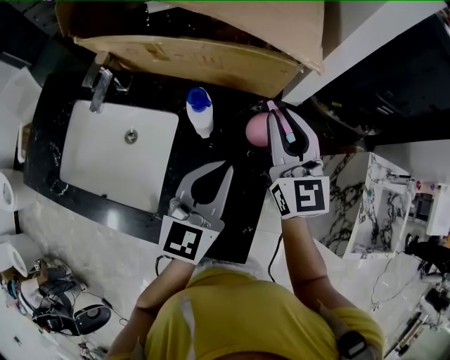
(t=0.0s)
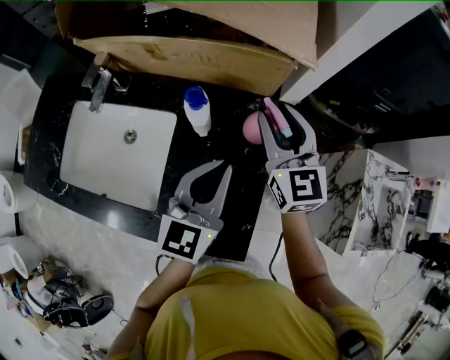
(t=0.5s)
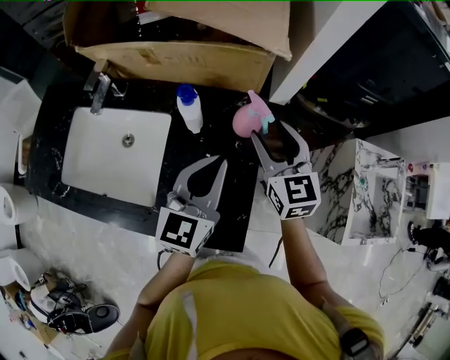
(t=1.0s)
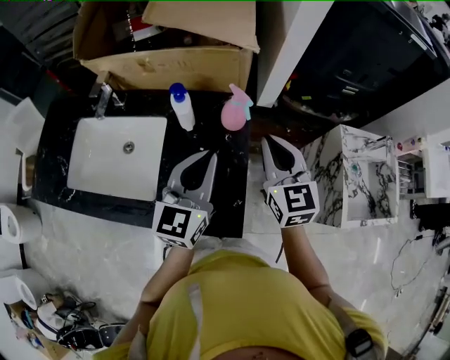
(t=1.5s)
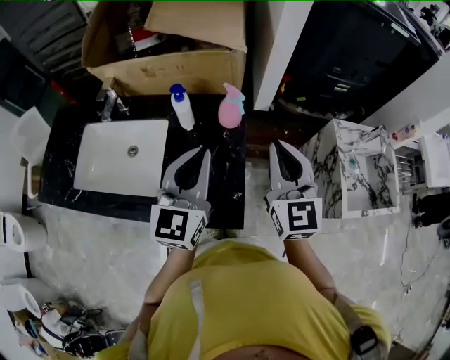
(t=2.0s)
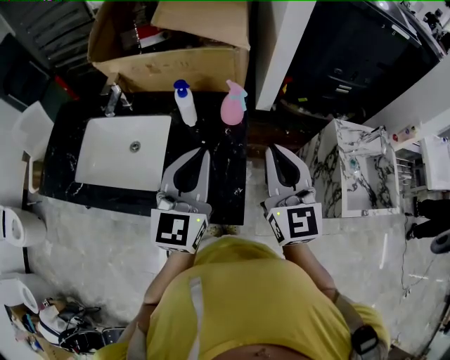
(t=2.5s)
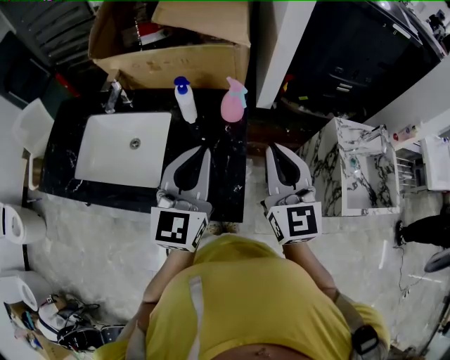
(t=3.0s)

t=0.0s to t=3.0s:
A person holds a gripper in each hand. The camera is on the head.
t=0.0s to t=1.5s: The right gripper heads backward and to the right, covering roughly 15 cm, and opens, then closes again. Meanwhile the left gripper goes some 10 cm backward and upward.
t=1.5s to t=3.0s: Both grippers move backward and upward, some 10 cm.

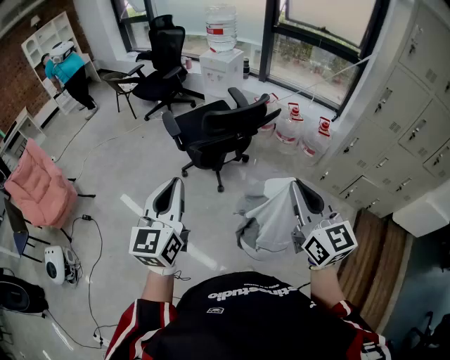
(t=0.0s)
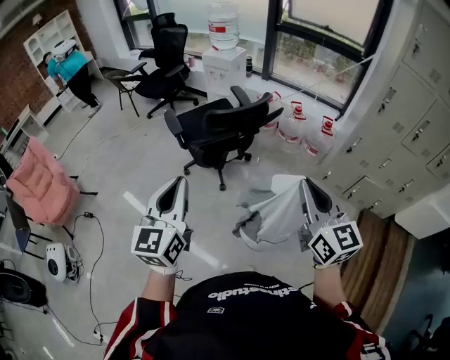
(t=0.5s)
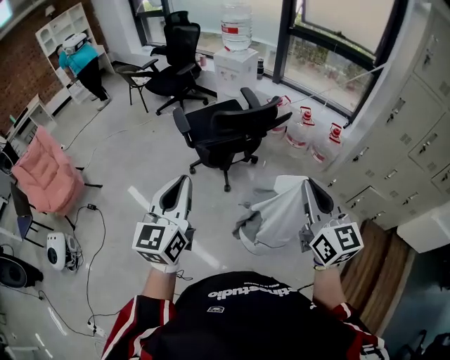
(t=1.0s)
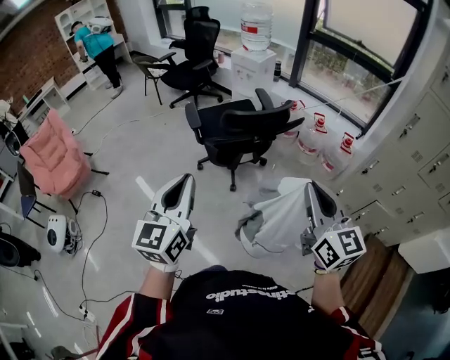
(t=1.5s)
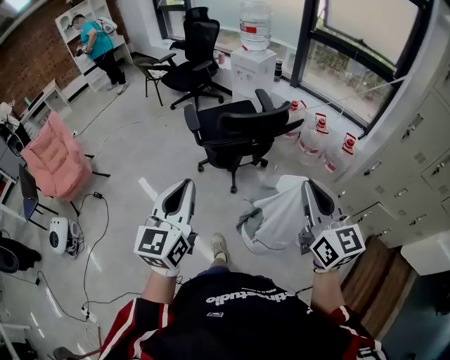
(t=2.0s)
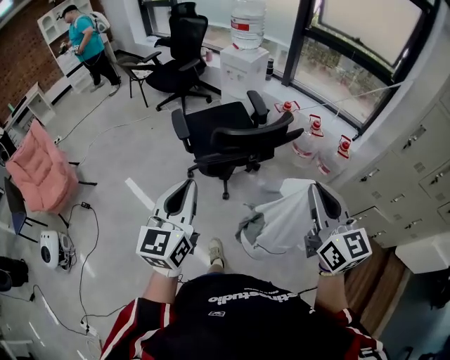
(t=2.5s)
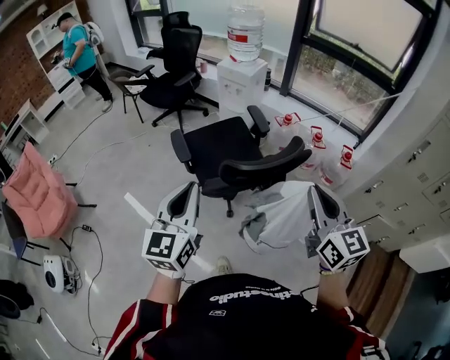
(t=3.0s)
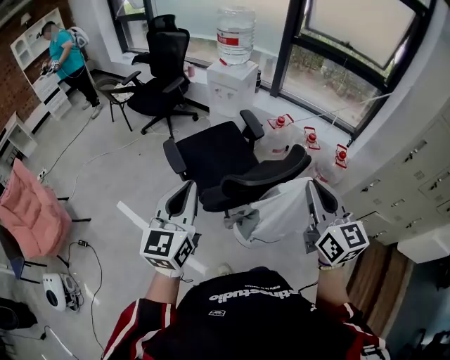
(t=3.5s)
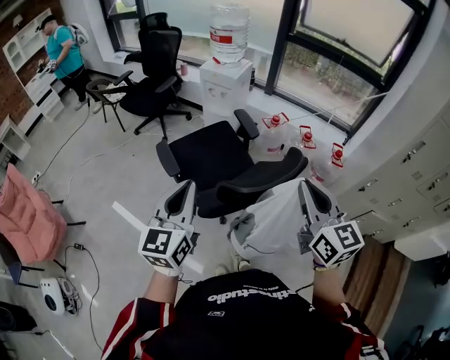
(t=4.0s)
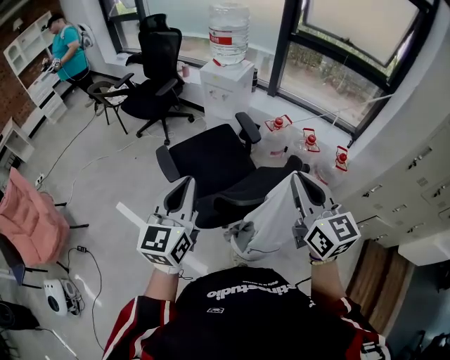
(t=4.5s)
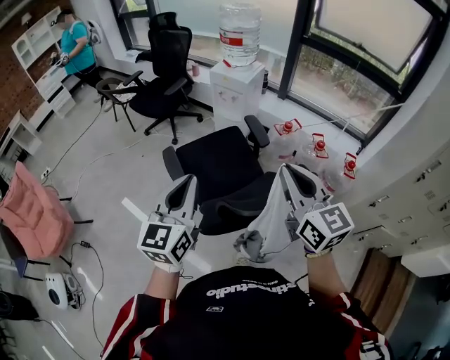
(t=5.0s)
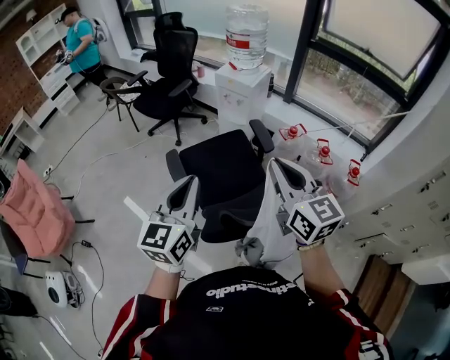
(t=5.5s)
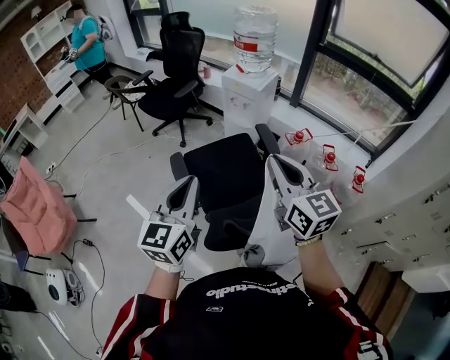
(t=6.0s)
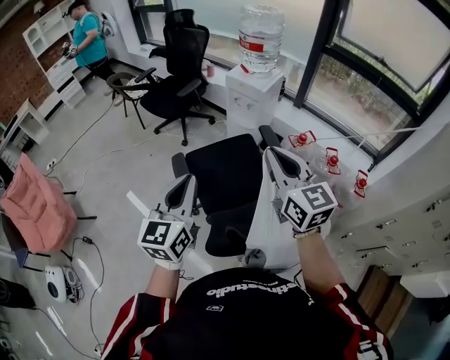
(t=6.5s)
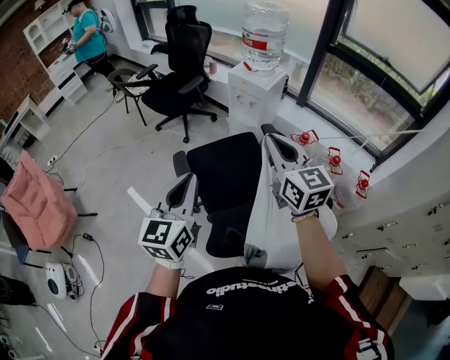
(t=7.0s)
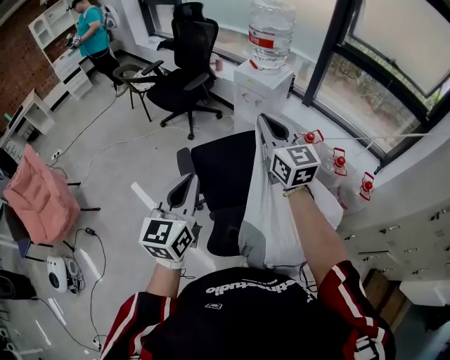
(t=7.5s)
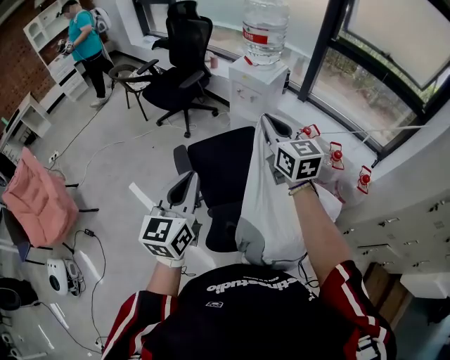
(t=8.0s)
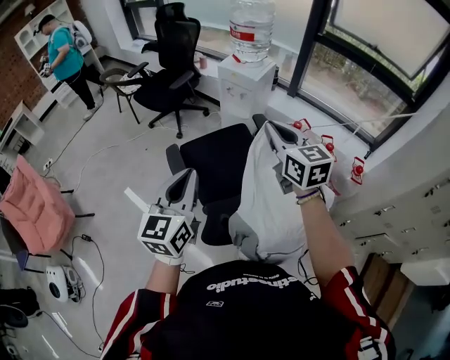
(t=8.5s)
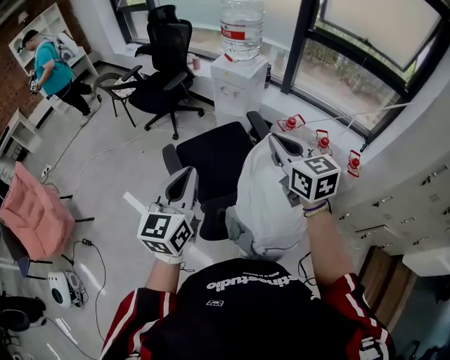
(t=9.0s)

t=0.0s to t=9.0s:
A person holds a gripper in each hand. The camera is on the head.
t=0.0s to t=2.0s: The right gripper is displaced forward and to the right by about 10 cm, while the left gripper is displaced to the right by about 5 cm.
t=2.0s to t=4.5s: The two grippers travel together, forward, approximately 40 cm.
t=4.5s to t=7.0s: The right gripper is displaced forward by about 25 cm. The left gripper shifts about 15 cm forward.
t=7.0s to t=9.0s: The right gripper goes some 10 cm backward and to the right; the left gripper shifts about 5 cm backward.

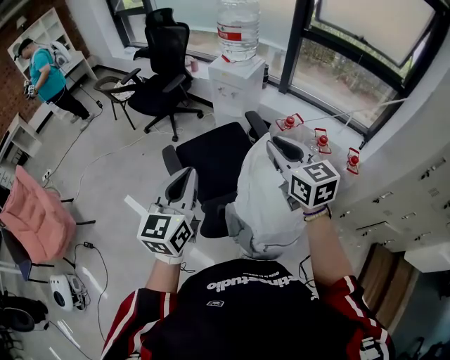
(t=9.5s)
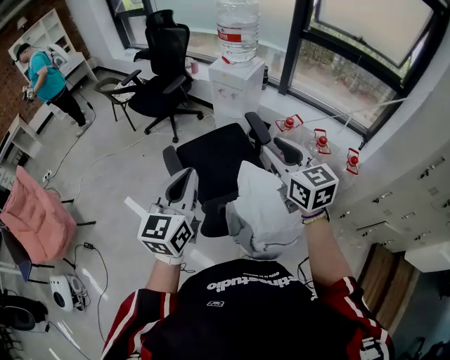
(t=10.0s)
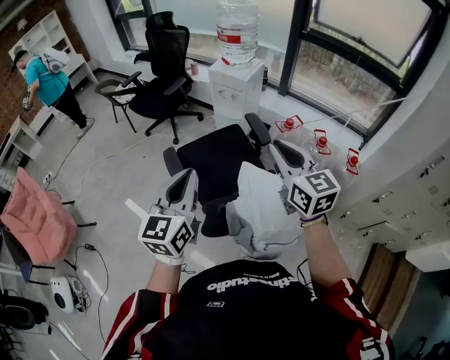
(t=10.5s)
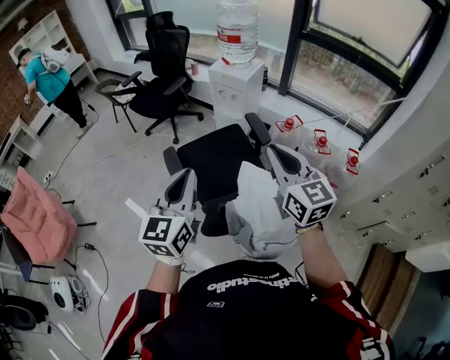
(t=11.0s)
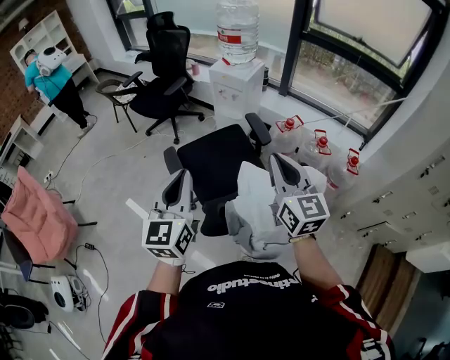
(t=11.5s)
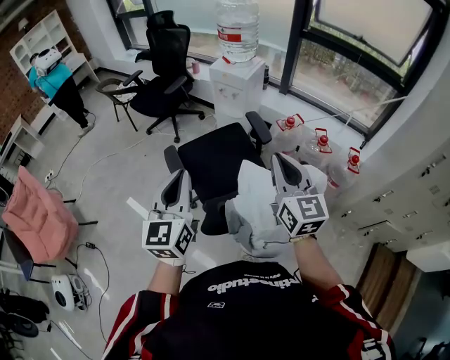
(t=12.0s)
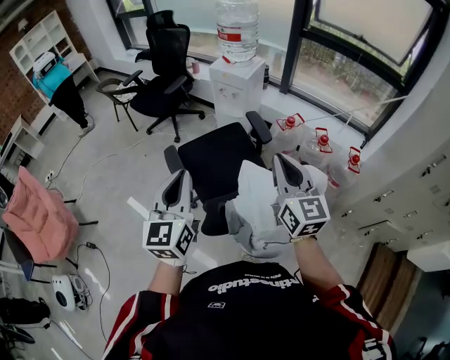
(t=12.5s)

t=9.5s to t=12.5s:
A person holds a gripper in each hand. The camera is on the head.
t=9.5s to t=12.5s: The grippers make only small movements.

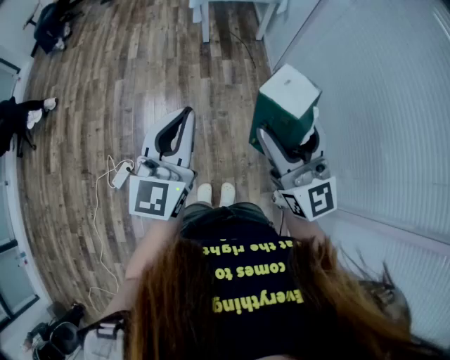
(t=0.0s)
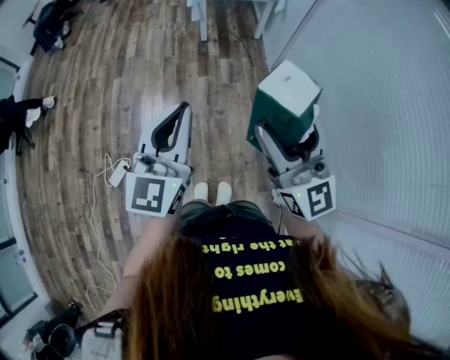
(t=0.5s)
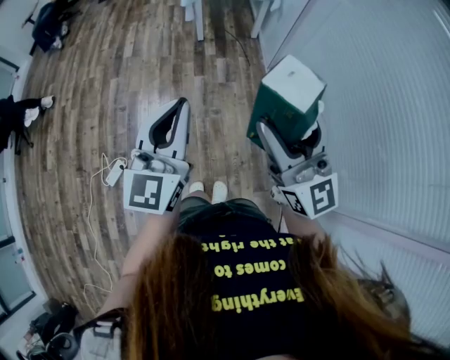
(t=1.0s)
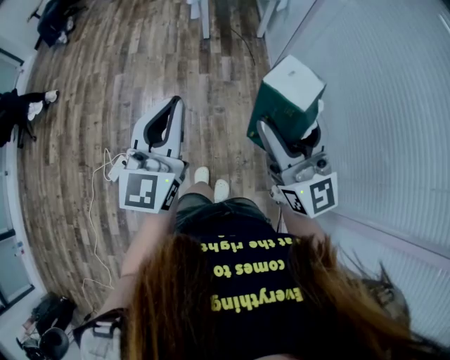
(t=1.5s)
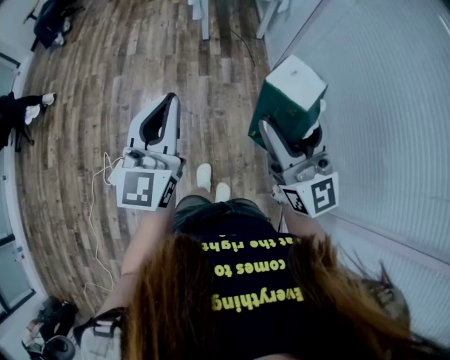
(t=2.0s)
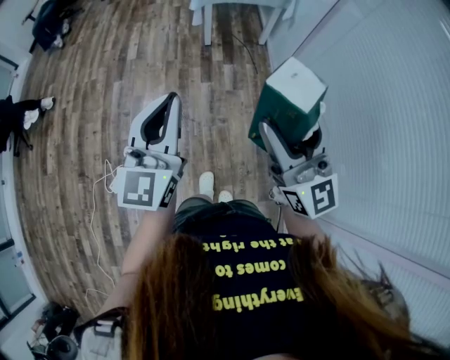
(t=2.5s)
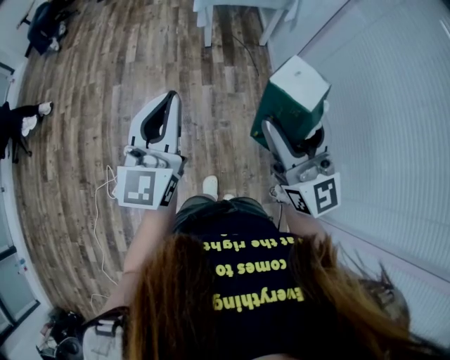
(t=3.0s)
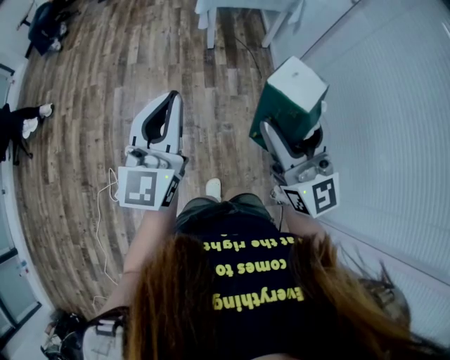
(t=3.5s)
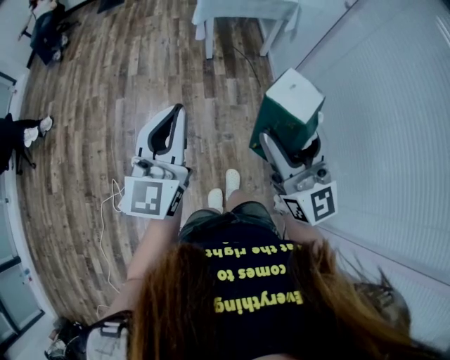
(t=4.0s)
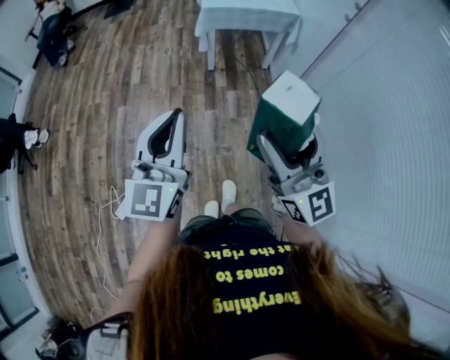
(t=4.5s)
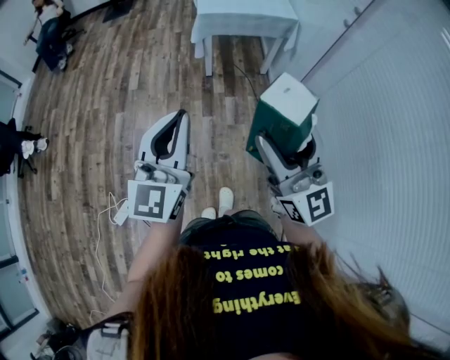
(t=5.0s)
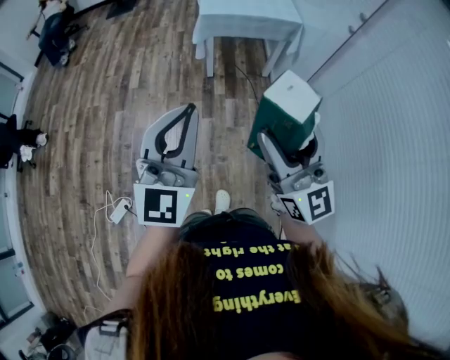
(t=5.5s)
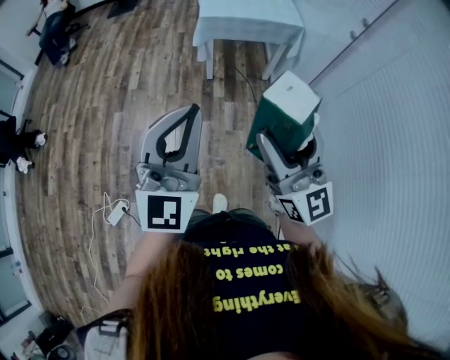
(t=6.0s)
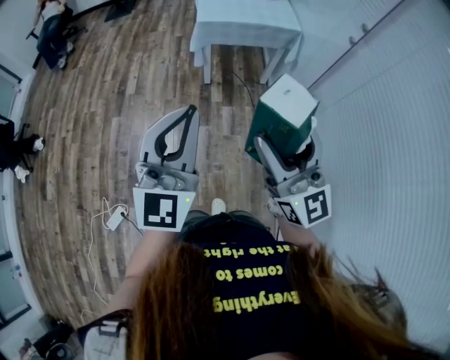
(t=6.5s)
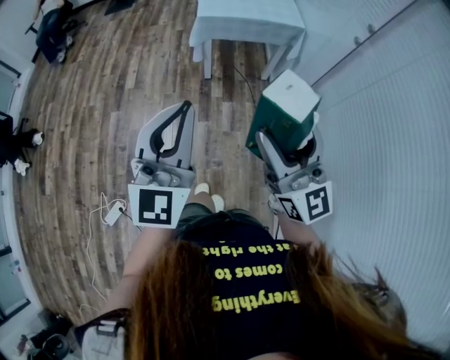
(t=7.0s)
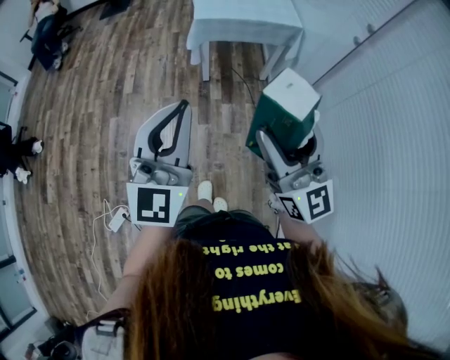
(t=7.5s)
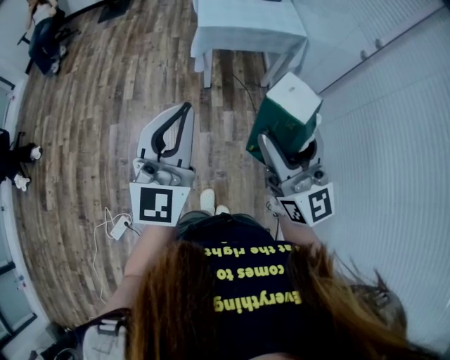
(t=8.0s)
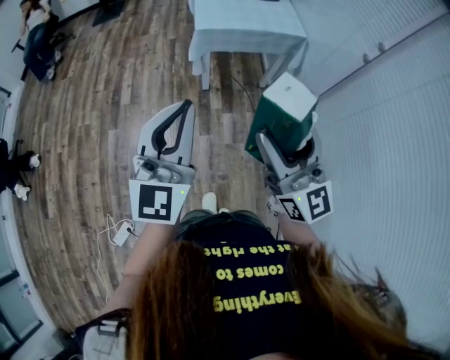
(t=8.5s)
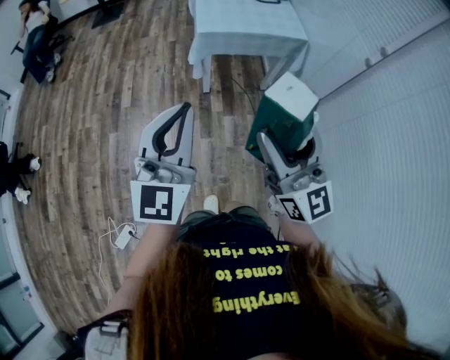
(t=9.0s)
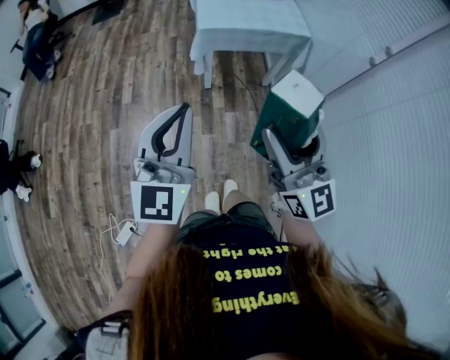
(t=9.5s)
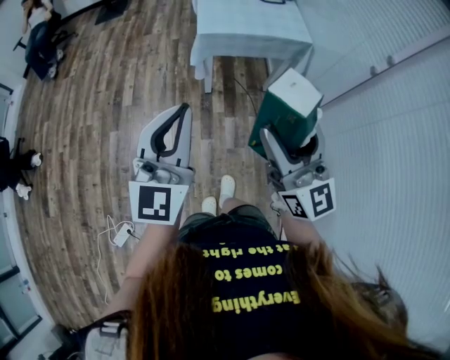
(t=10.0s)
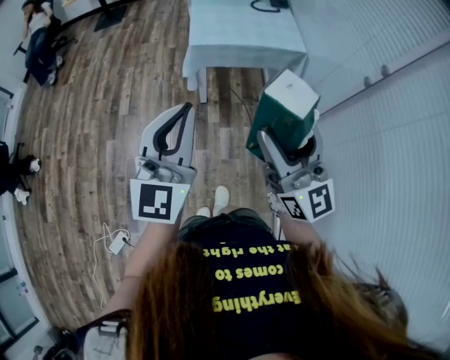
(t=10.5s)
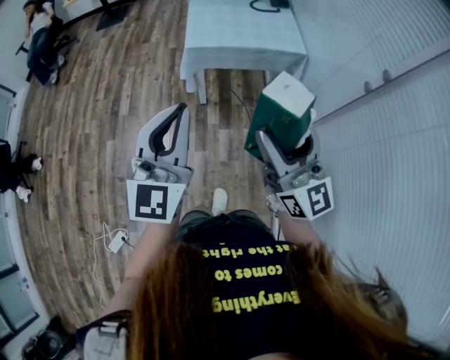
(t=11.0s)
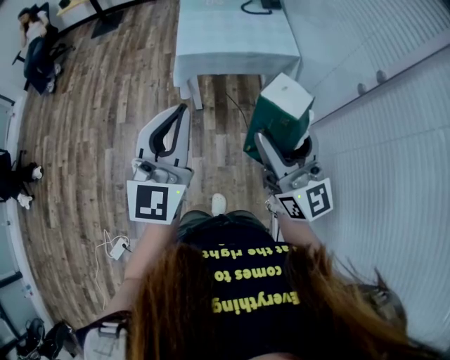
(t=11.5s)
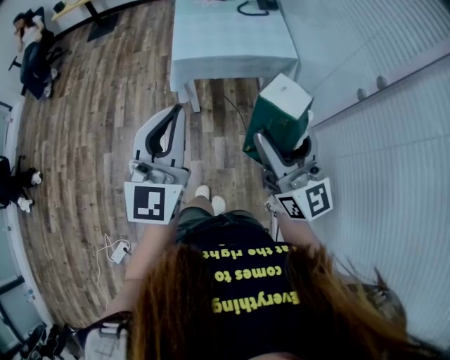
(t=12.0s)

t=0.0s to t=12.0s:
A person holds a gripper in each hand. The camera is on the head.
t=0.0s to t=2.0s: Both grippers travel together forward, roughly 5 cm.
t=2.0s to t=4.0s: The two grippers go approximately 10 cm forward and to the left.
t=4.0s to t=6.0s: The left gripper is displaced to the right, forward and upward by roughly 15 cm, and swivels roughly 20 degrees. The right gripper is displaced forward and to the right by some 15 cm.
t=6.0s to t=8.0s: Both grippers move forward, roughly 10 cm.
t=8.0s to t=10.0s: Both grippers move forward, some 10 cm.
t=10.0s to t=12.0s: The grippers both shift forward and to the right by some 15 cm.
